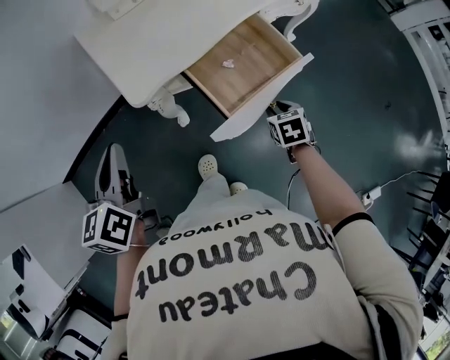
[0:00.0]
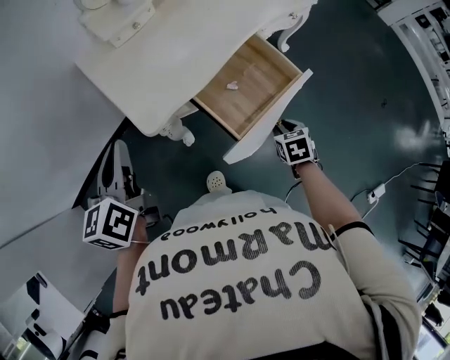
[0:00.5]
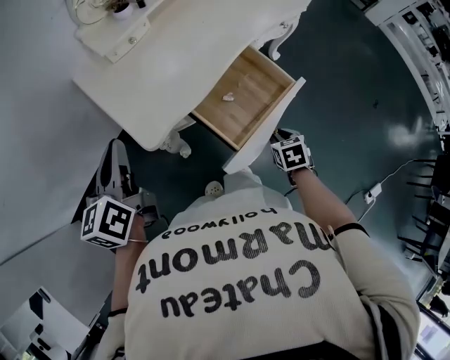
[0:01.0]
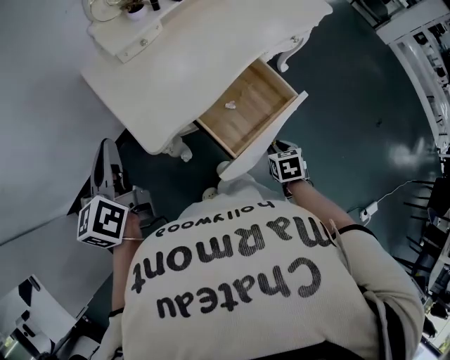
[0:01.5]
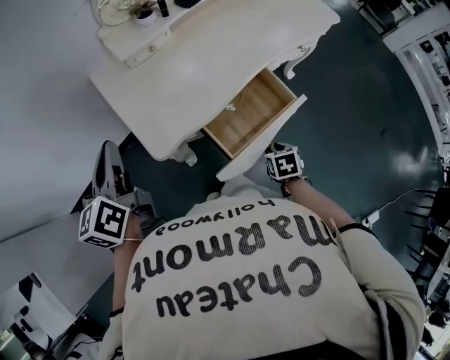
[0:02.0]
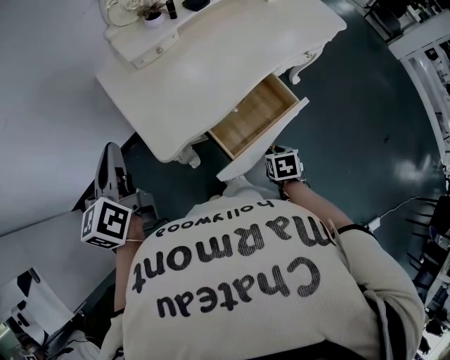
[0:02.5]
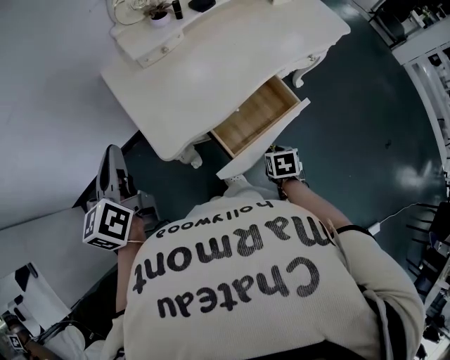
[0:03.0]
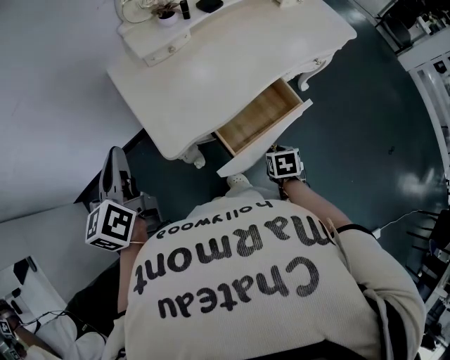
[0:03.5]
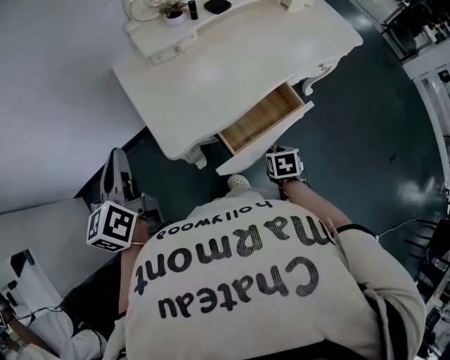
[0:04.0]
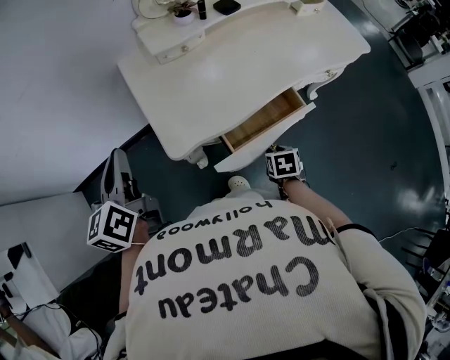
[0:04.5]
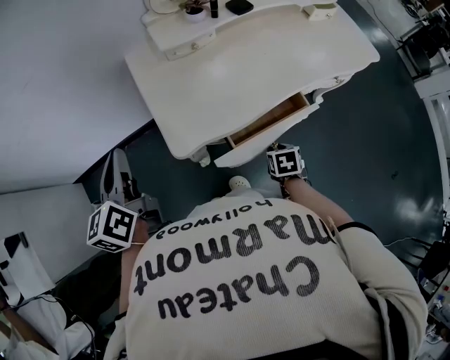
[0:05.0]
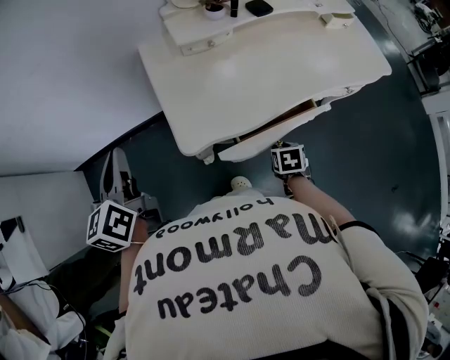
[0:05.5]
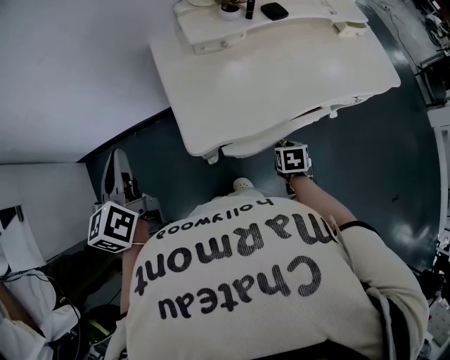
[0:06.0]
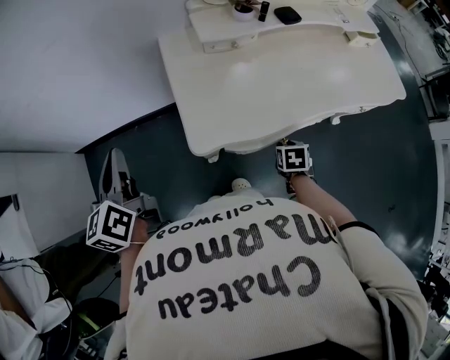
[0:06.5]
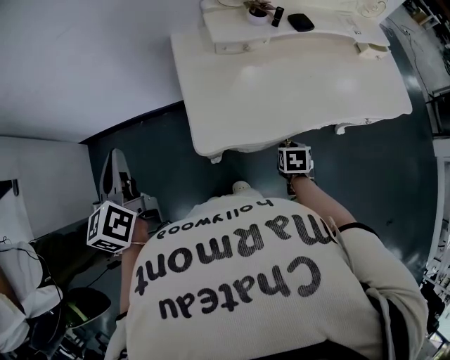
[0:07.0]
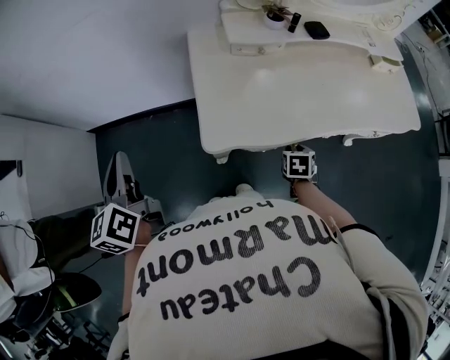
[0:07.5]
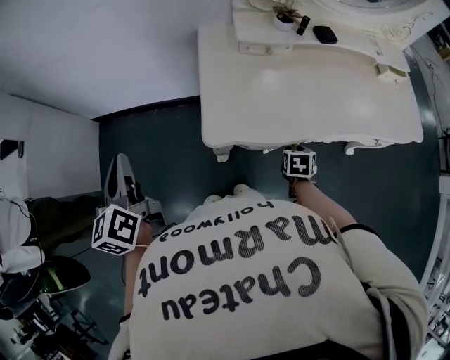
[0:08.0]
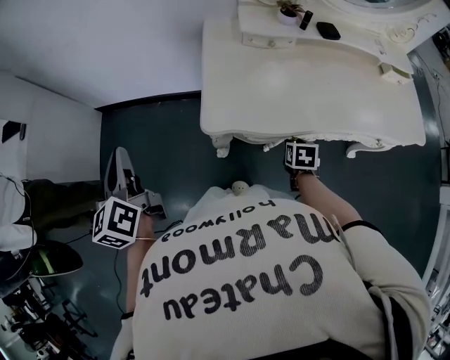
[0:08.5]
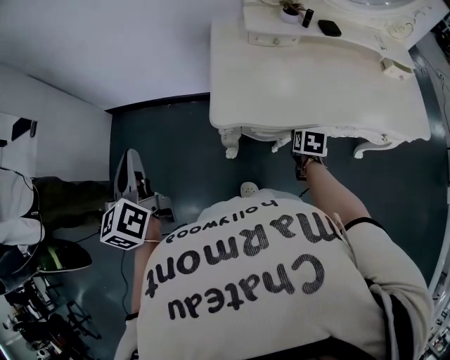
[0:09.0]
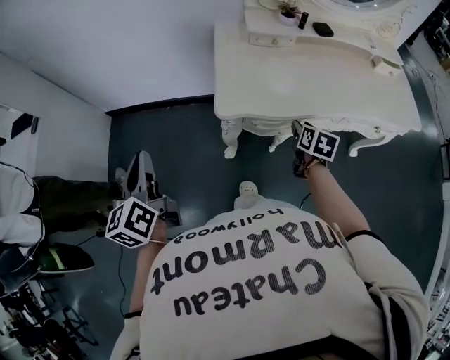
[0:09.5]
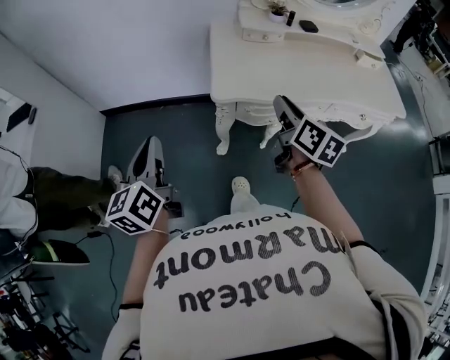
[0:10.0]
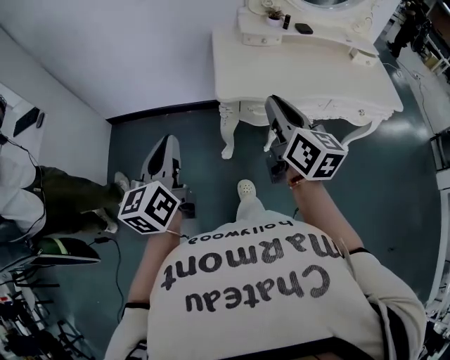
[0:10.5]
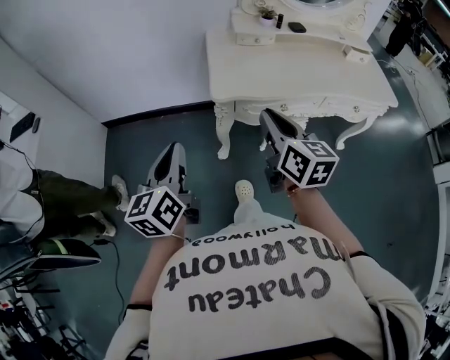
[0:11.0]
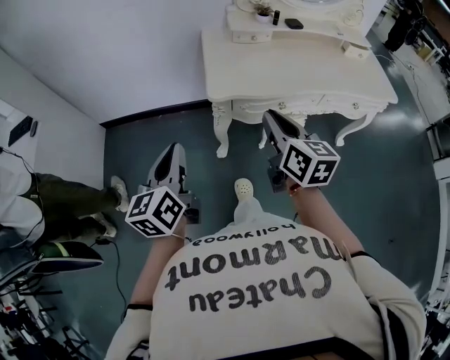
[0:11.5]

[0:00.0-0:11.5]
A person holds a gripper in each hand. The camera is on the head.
0:00.0 to 0:02.0: The left gripper travels forward and upward by roughly 15 cm.
0:02.0 to 0:04.0: The grippers move only a little.
0:04.0 to 0:06.0: The right gripper heads forward, covering about 10 cm. The left gripper is displaced to the left by some 5 cm.
0:06.0 to 0:07.5: The left gripper shifts some 5 cm backward.
0:07.5 to 0:09.5: The left gripper travels backward by about 15 cm. The right gripper moves upward, about 10 cm, and changes its angle by roughly 30 degrees.
0:09.5 to 0:11.5: The left gripper moves backward and to the right, some 10 cm. Meanwhile the right gripper goes approximately 30 cm upward, backward and to the left, points its fingers approximately 30 degrees further upward, and closes its fingers.

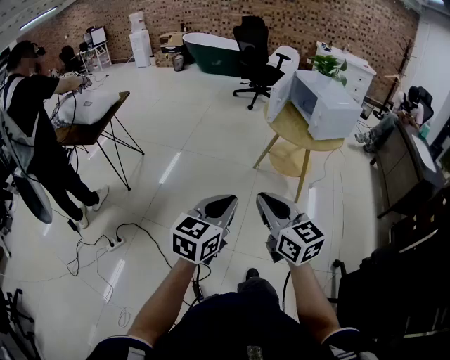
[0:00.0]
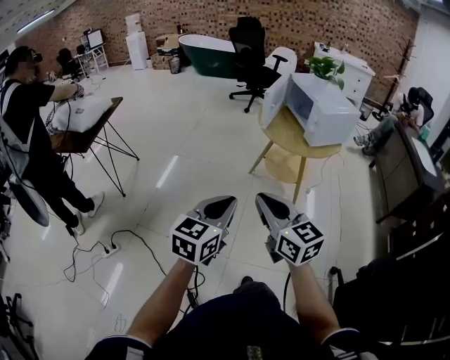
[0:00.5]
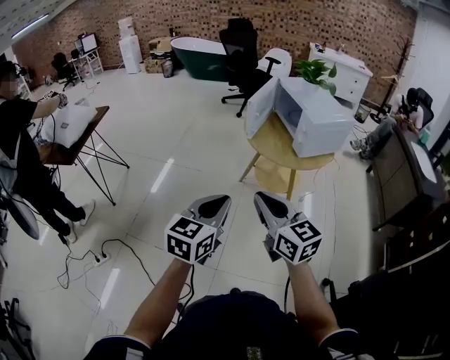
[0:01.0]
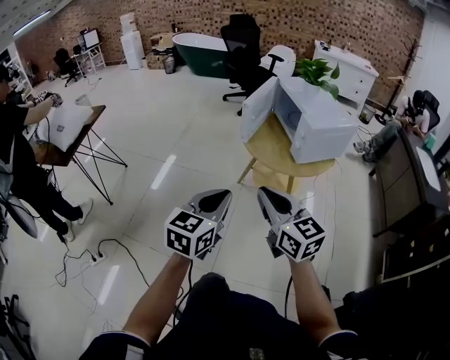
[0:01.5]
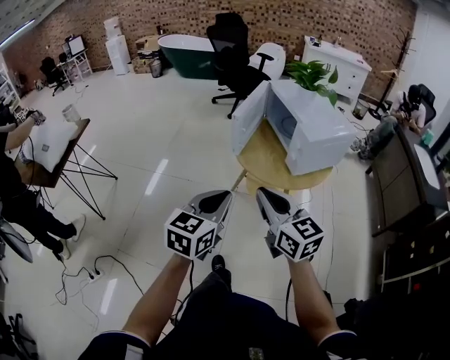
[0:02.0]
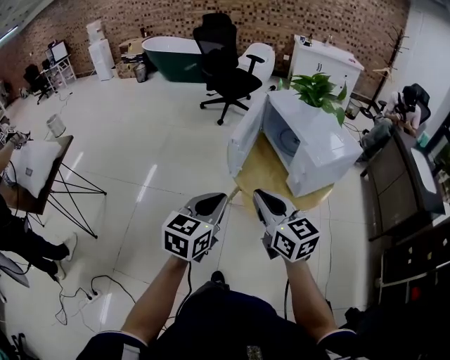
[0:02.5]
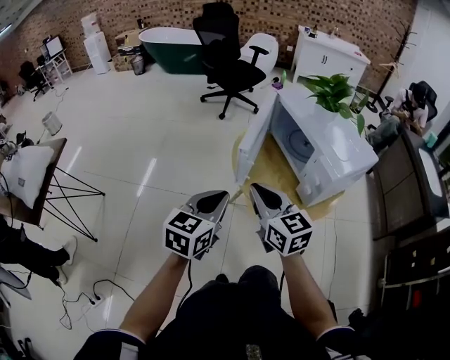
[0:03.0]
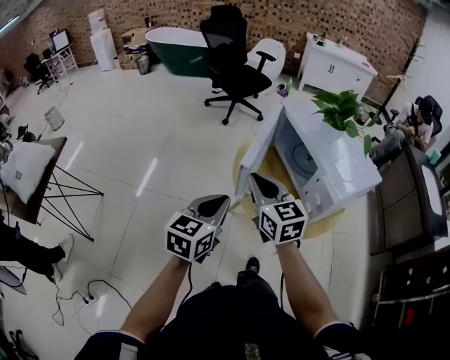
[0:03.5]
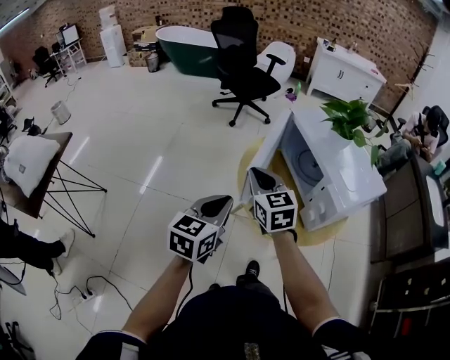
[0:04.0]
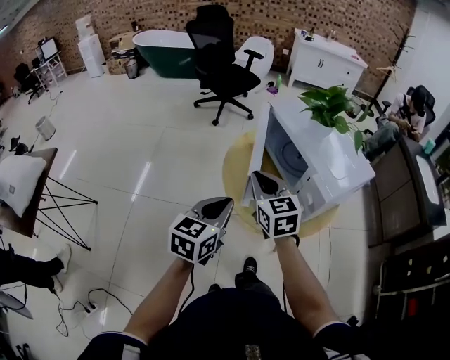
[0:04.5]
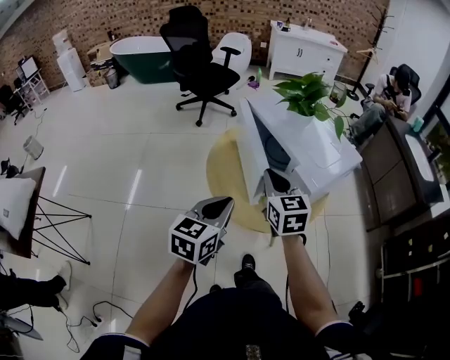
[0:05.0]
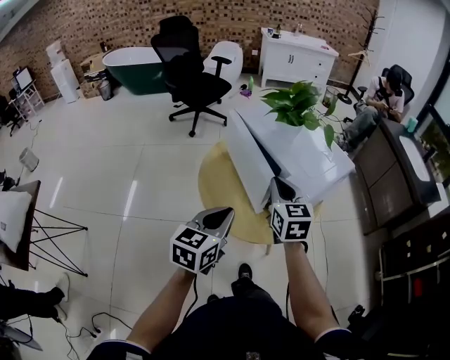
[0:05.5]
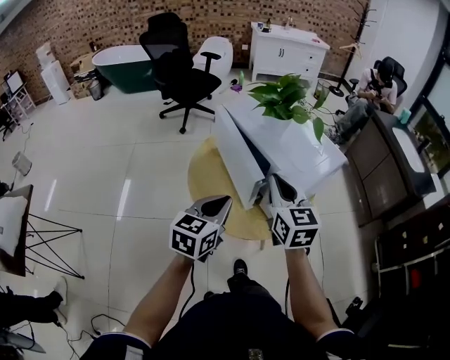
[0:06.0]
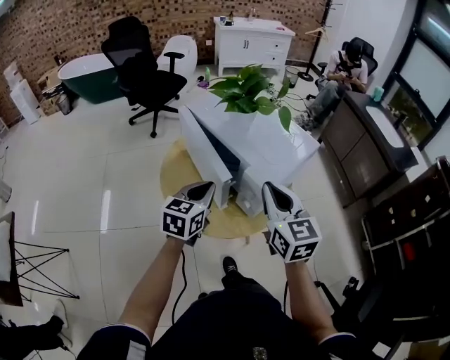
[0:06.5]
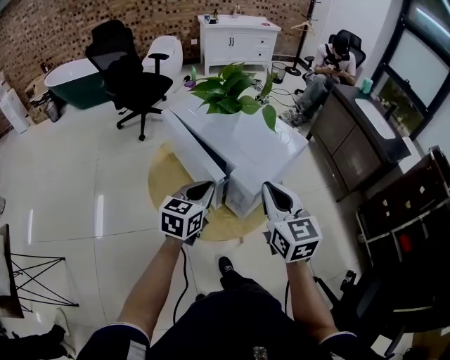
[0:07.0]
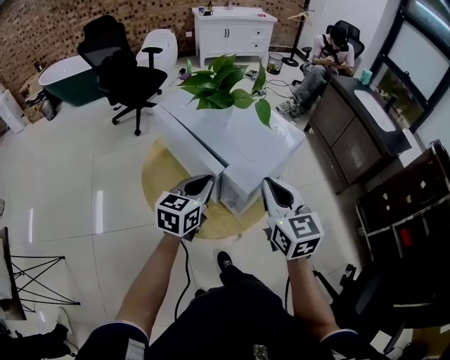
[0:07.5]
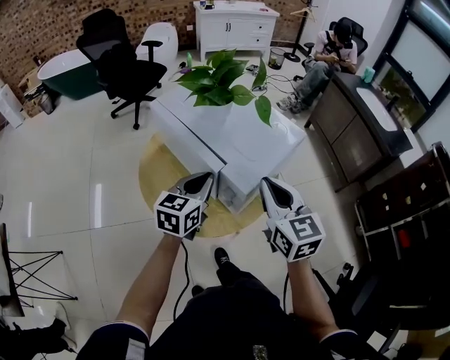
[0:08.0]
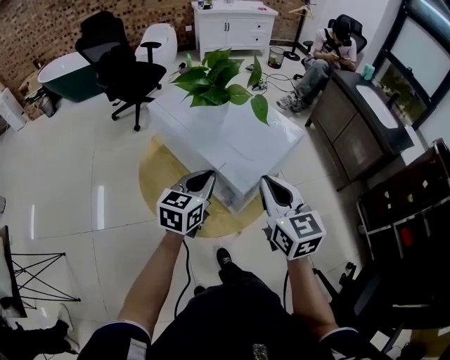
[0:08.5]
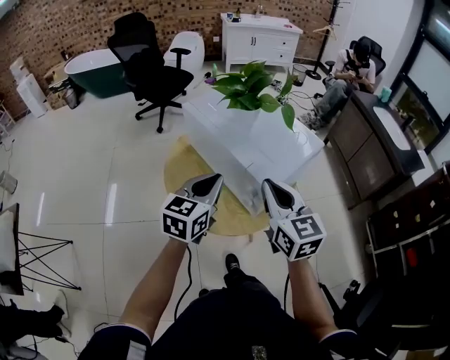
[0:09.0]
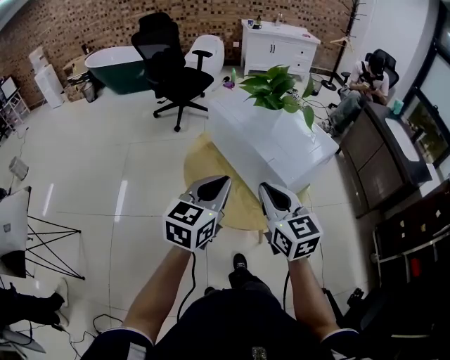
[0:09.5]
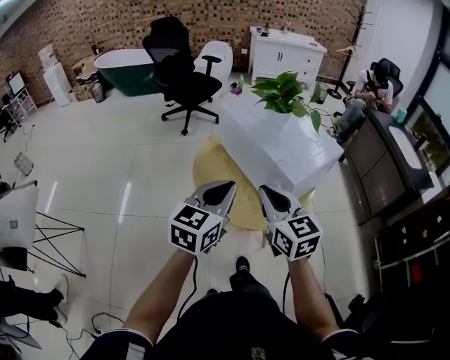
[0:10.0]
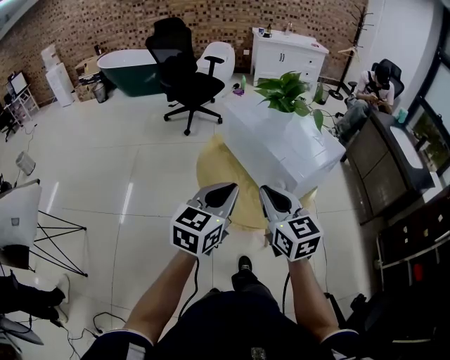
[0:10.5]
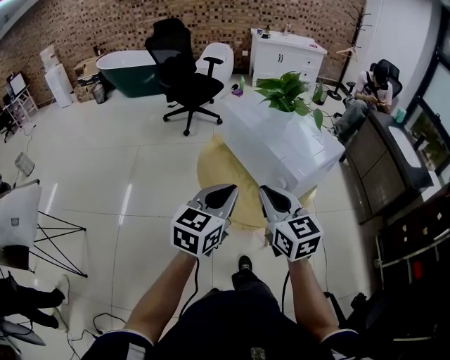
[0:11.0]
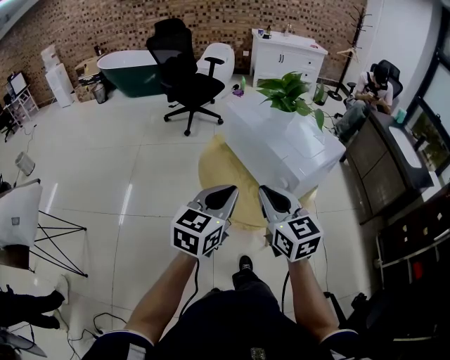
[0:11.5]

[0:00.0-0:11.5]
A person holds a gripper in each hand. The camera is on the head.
0:00.0 to 0:02.0: Both grippers move forward and to the right, some 35 cm.
0:02.0 to 0:04.0: Both grippers move forward, about 30 cm.
0:04.0 to 0:06.0: The left gripper shifts about 15 cm to the right and forward, while the right gripper heads to the right, covering roughly 20 cm, and rotates about 20 degrees.
0:06.0 to 0:07.5: The right gripper shifts roughly 10 cm to the right, while the left gripper travels forward and to the right by some 15 cm.
0:07.5 to 0:09.5: The right gripper goes about 15 cm to the left and backward; the left gripper moves backward, upward and to the left, roughly 15 cm.
0:09.5 to 0:11.5: The left gripper travels backward by some 5 cm; the right gripper moves to the left, approximately 5 cm.

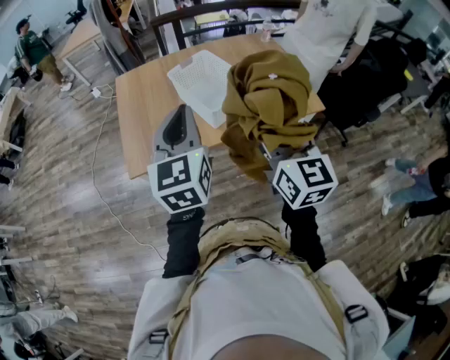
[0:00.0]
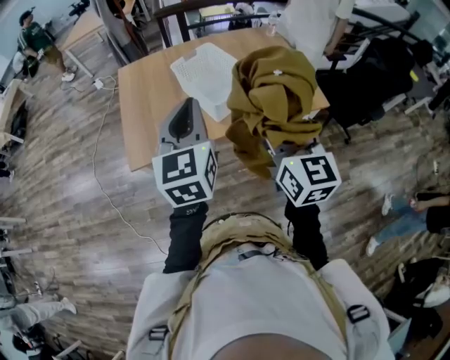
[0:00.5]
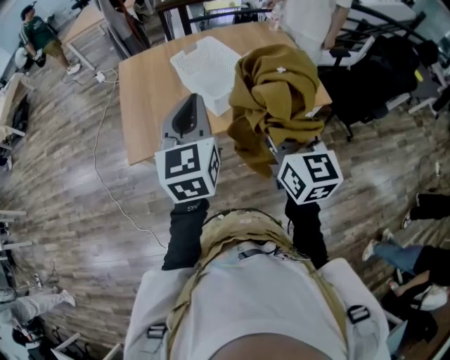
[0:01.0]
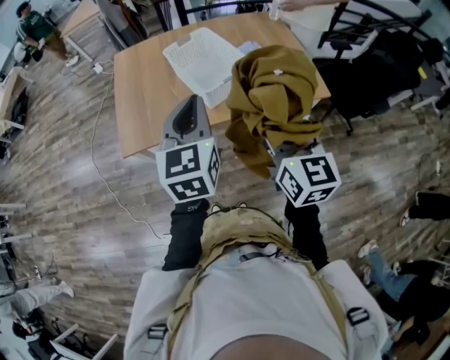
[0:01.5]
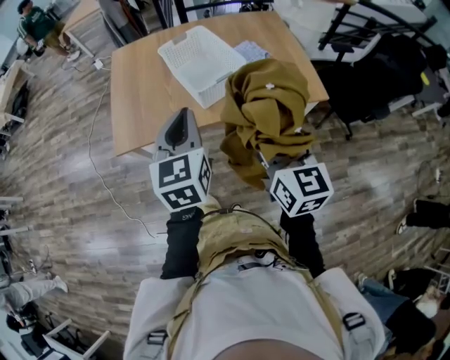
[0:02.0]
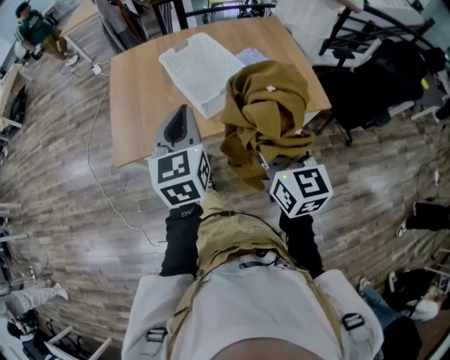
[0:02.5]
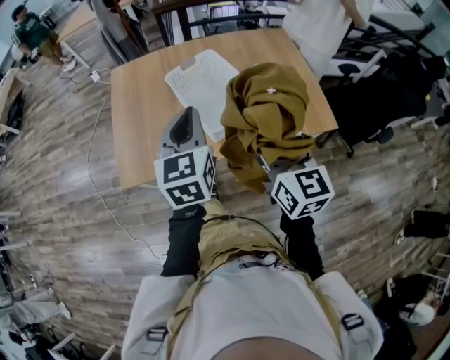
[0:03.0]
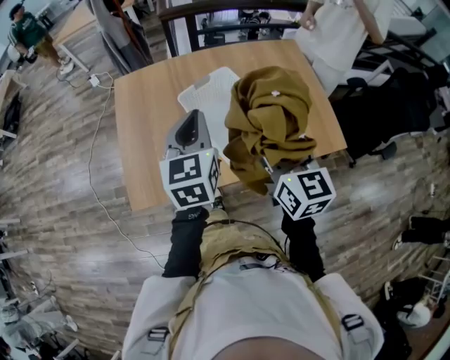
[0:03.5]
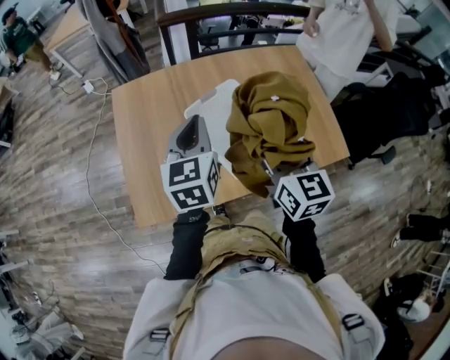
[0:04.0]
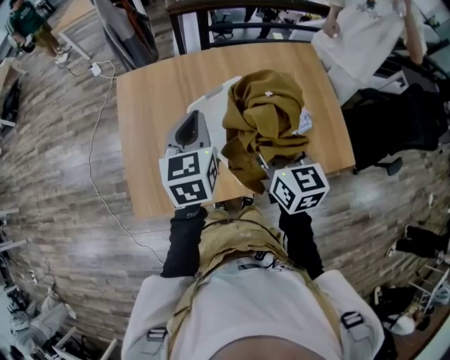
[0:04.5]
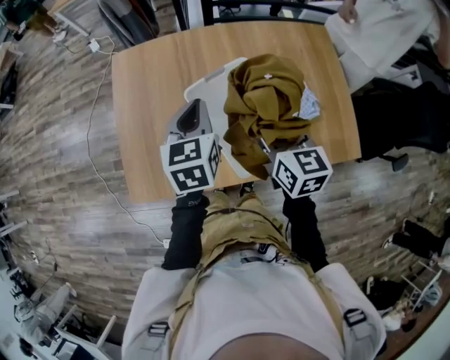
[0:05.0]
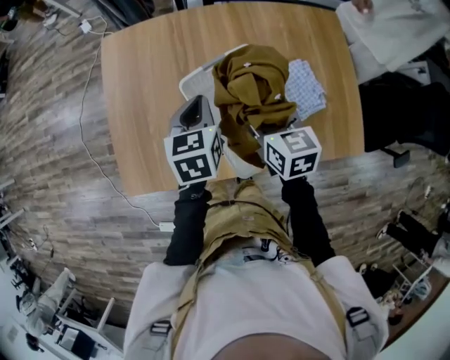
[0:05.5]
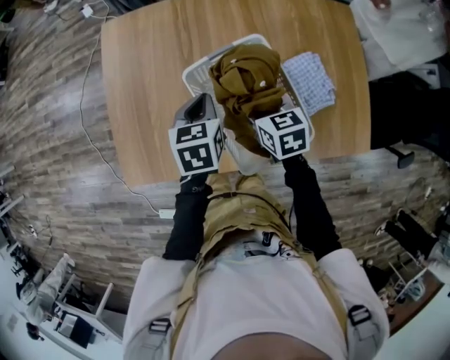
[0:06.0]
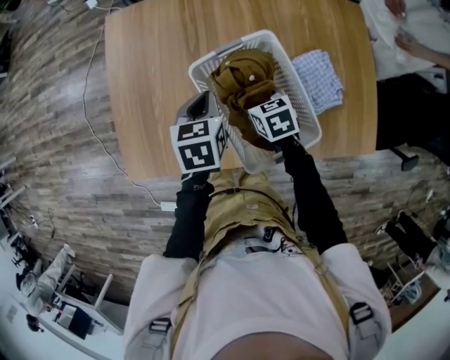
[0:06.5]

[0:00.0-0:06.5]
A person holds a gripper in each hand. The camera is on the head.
0:00.0 to 0:02.0: The grippers both shift downward and to the right by some 10 cm.
0:02.0 to 0:04.5: The two grippers go some 35 cm forward.
0:04.5 to 0:06.5: Both grippers move downward, roughly 25 cm. The right gripper angles its fingers downward, by roughly 40 degrees. Meanwhile the left gripper changes its angle by approximately 30 degrees.
